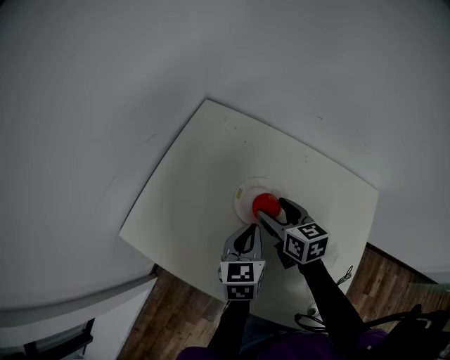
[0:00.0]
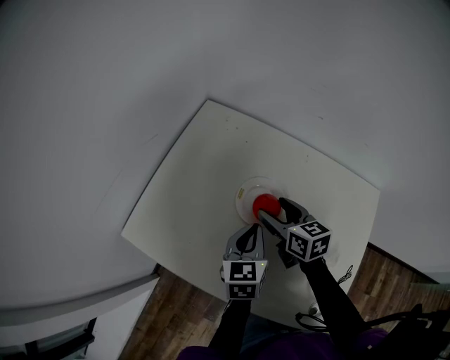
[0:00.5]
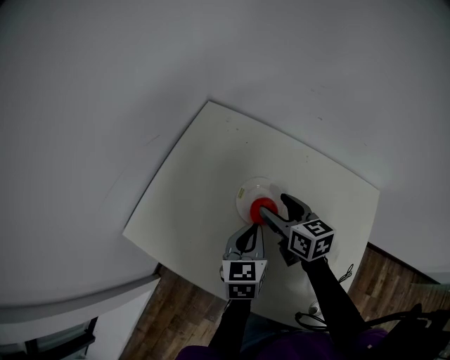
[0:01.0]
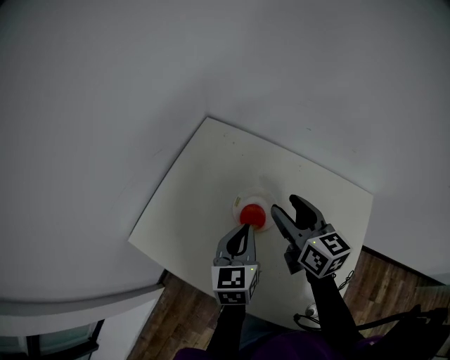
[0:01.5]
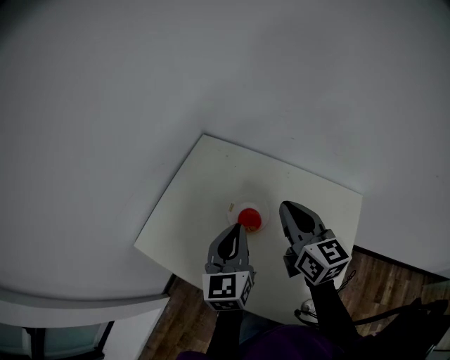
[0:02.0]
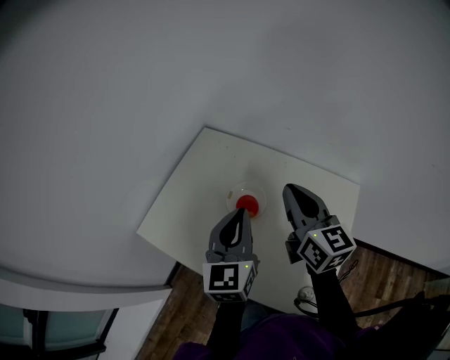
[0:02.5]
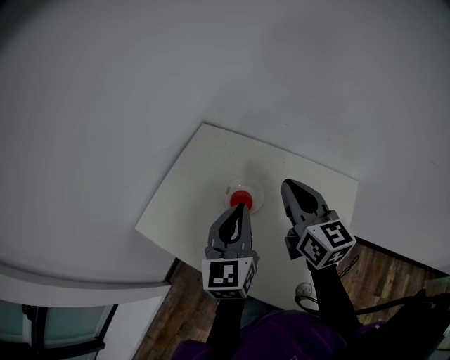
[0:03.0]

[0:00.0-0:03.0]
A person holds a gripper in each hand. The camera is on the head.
0:00.0 to 0:01.5: The left gripper shifts approximately 10 cm upward. The right gripper goes roughly 15 cm upward.
0:01.5 to 0:03.0: The two grippers go approximately 15 cm upward and backward. The right gripper closes.

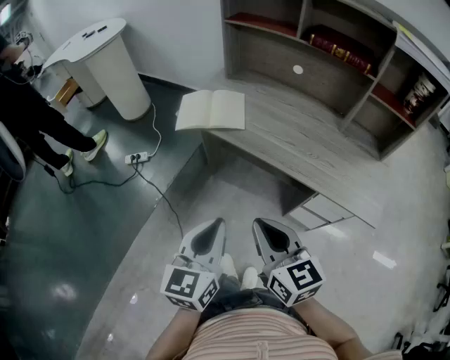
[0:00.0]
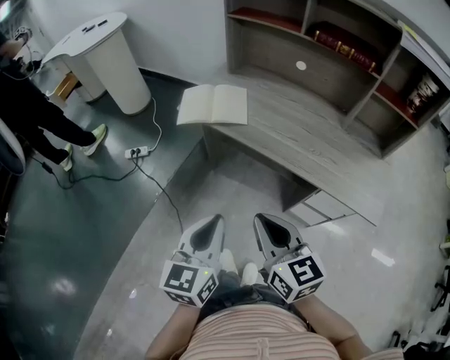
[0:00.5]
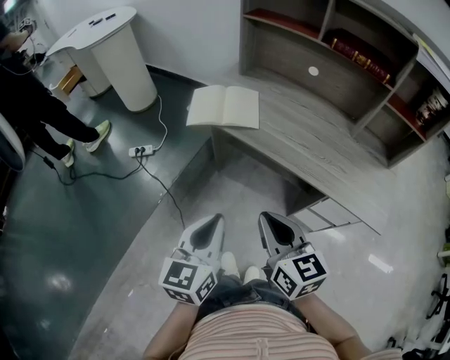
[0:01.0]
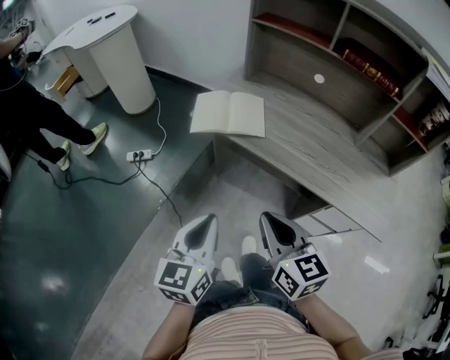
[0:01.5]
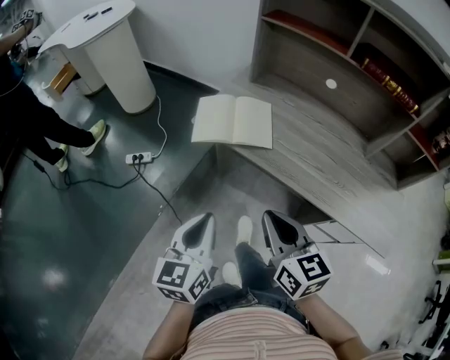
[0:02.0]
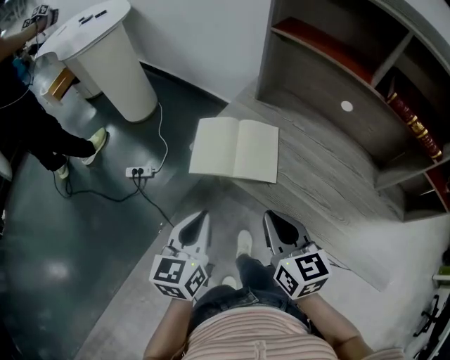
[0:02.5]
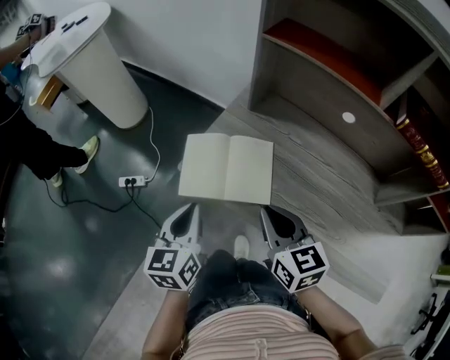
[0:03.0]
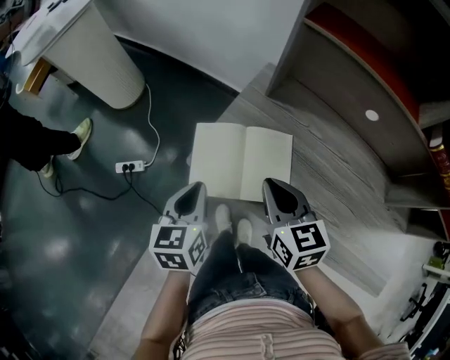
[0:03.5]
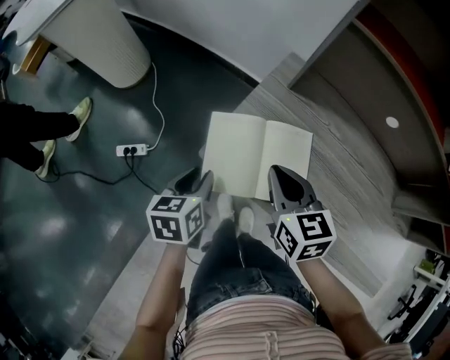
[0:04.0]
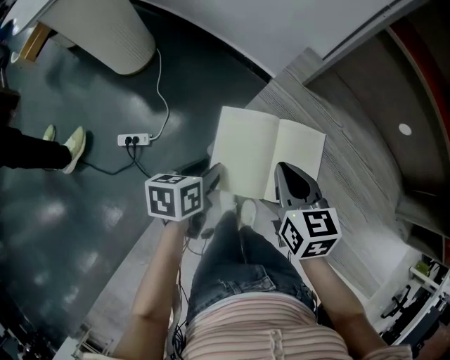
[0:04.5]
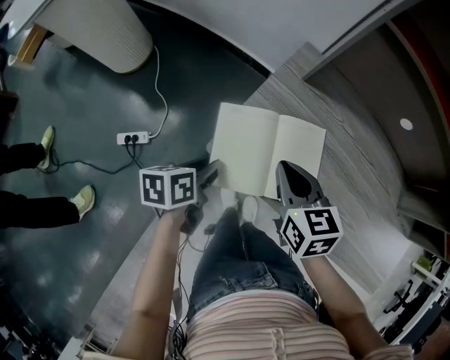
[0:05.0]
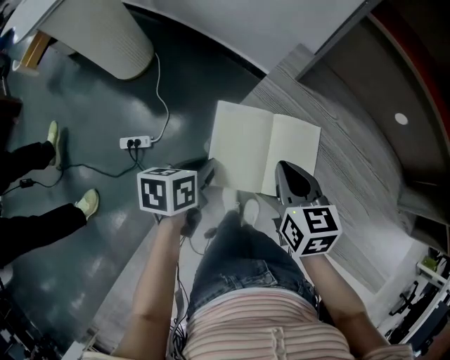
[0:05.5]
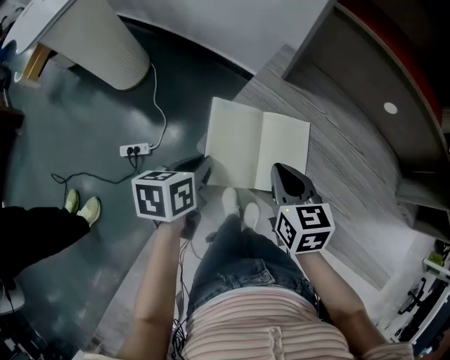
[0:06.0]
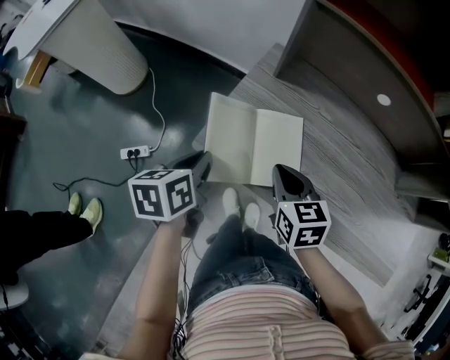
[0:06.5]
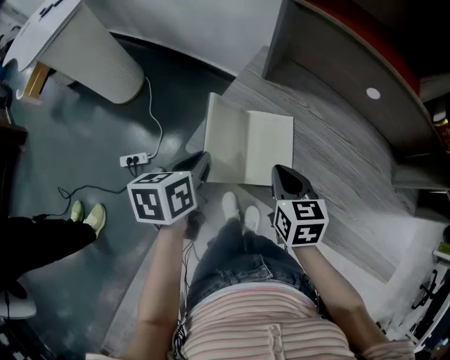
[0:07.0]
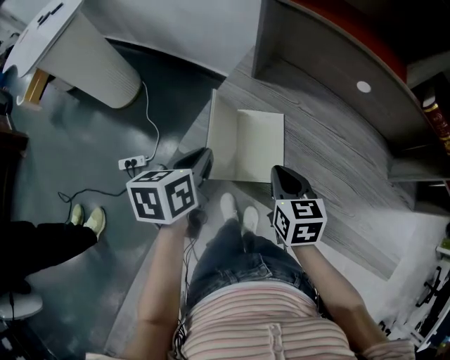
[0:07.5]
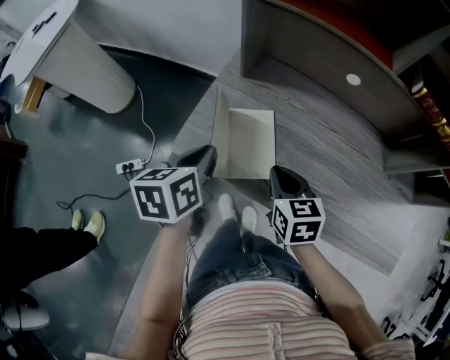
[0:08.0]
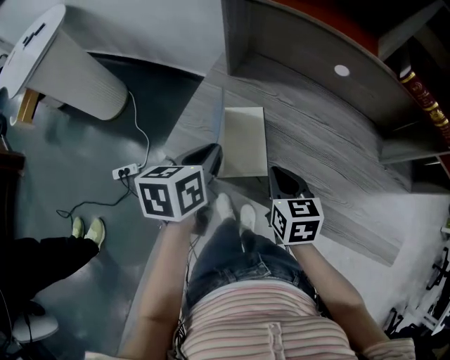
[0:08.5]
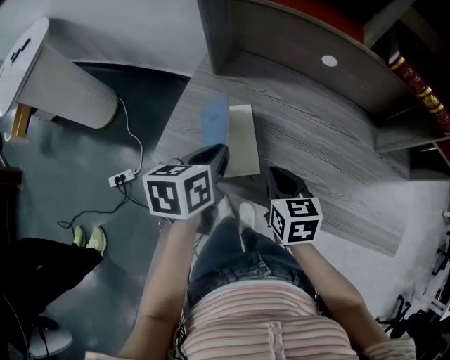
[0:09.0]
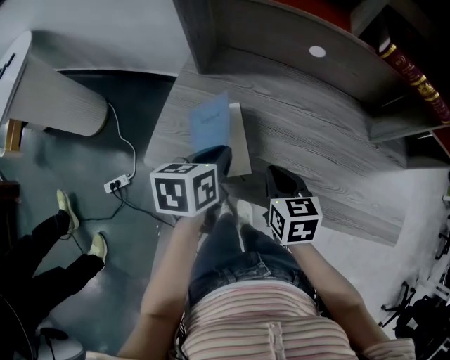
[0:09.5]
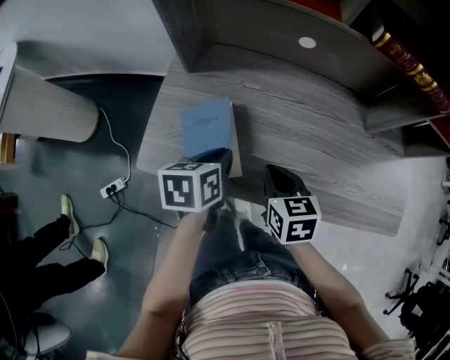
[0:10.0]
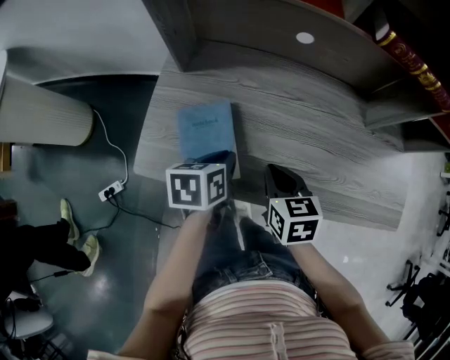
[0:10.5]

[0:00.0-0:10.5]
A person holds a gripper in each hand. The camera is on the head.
0:00.0 to 0:02.0: The right gripper heads forward, covering about 15 cm; the left gripper shifts approximately 15 cm forward and to the left.
0:02.0 to 0:04.0: The right gripper heads forward, covering approximately 35 cm. The left gripper shifts roughly 35 cm forward and downward, changes its angle by roughly 30 degrees, and opens up.
0:04.0 to 0:06.5: The right gripper ends up about 5 cm from where it was. Meanwhile the left gripper is displaced upward by roughly 5 cm.
0:06.5 to 0:08.5: The two grippers go about 10 cm to the right.
0:08.5 to 0:10.5: The right gripper heads to the right, covering roughly 5 cm. The left gripper goes roughly 15 cm to the right and downward, and turns by roughly 20 degrees.

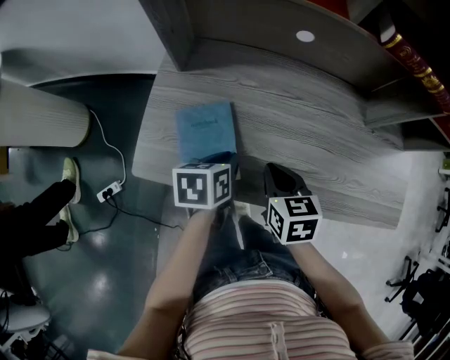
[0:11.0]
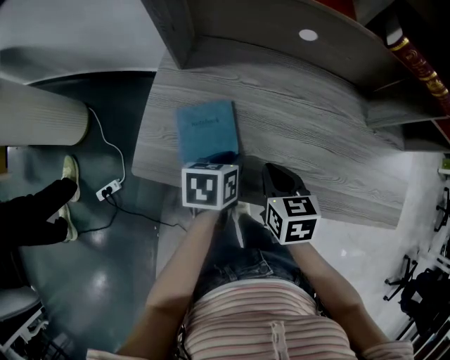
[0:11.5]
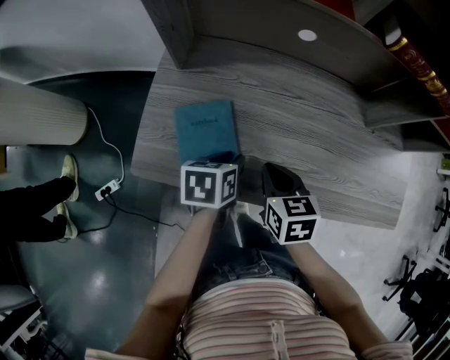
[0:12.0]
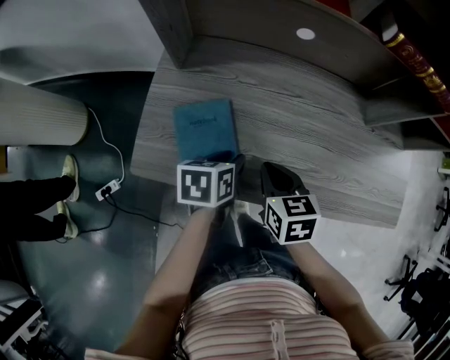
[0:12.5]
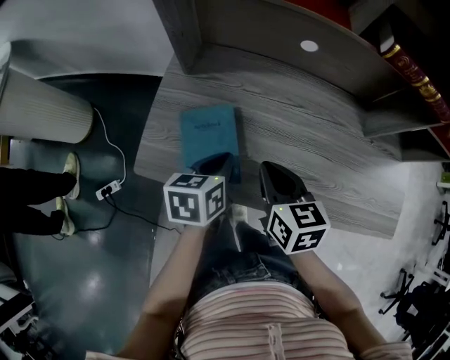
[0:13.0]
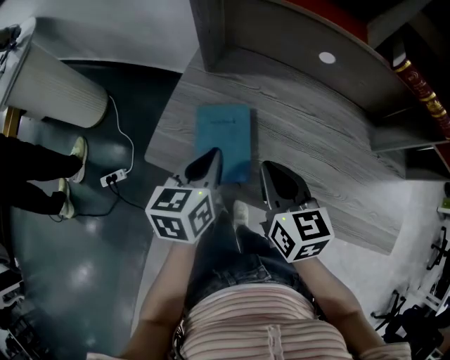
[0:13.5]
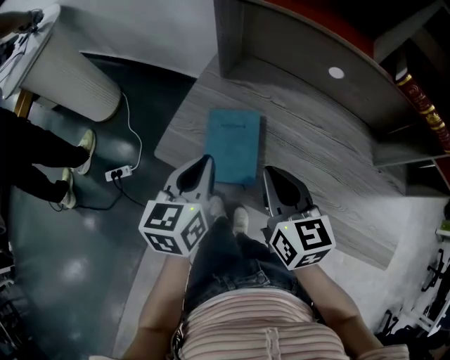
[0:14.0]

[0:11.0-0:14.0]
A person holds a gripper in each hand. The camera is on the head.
0:11.0 to 0:12.5: The grippers stay close to where they were, moving slightly.
0:12.5 to 0:14.0: The grippers both shift upward by roughly 10 cm. The right gripper changes its angle by some 30 degrees. The left gripper turns by some 40 degrees, and closes.

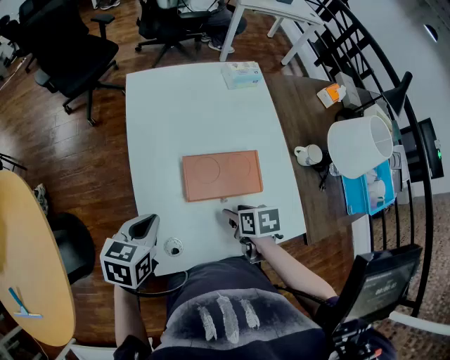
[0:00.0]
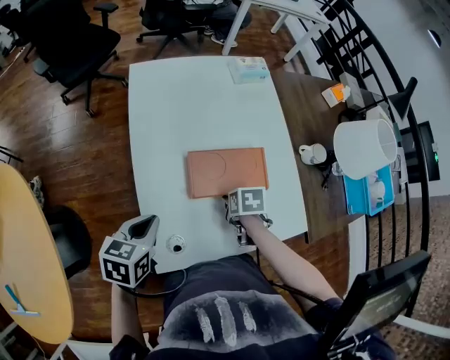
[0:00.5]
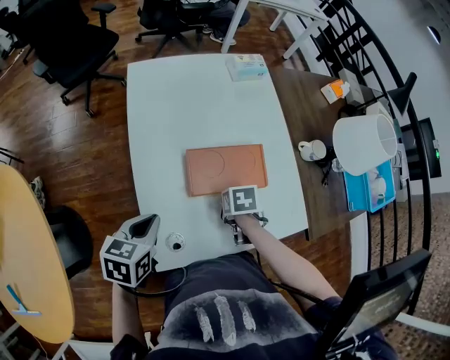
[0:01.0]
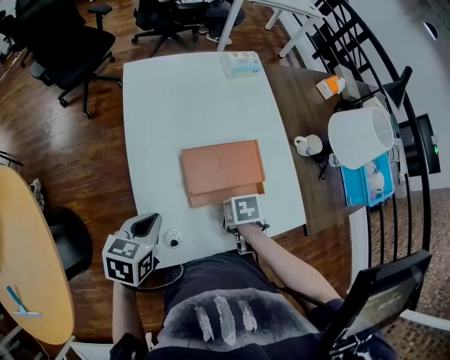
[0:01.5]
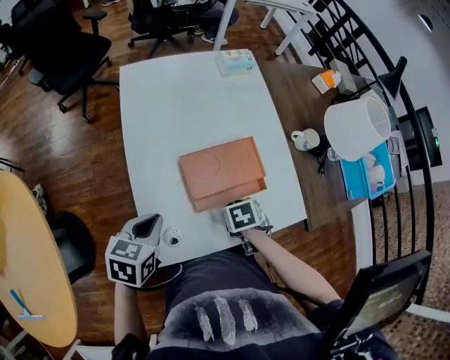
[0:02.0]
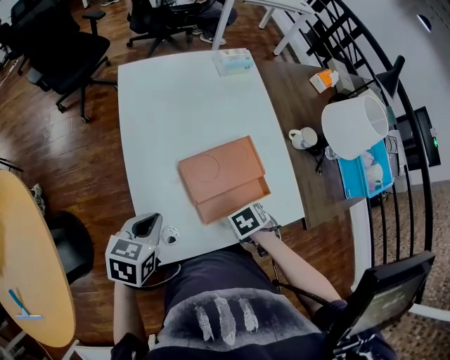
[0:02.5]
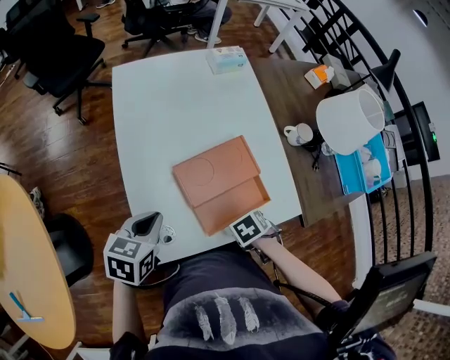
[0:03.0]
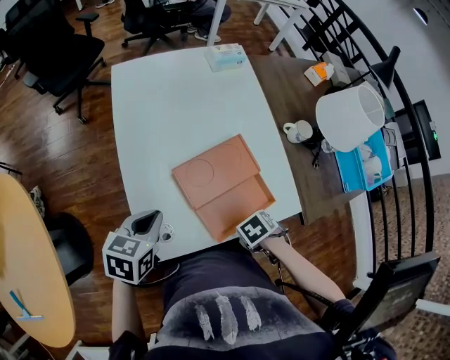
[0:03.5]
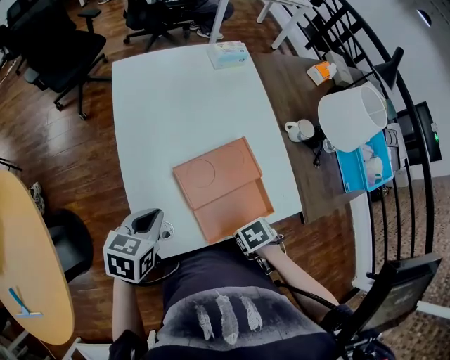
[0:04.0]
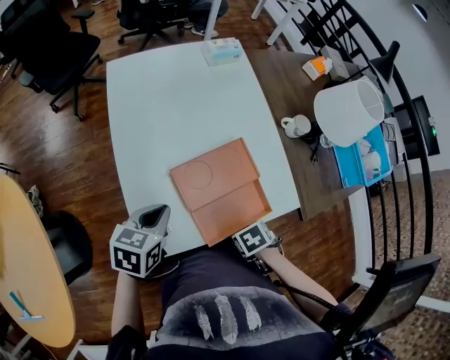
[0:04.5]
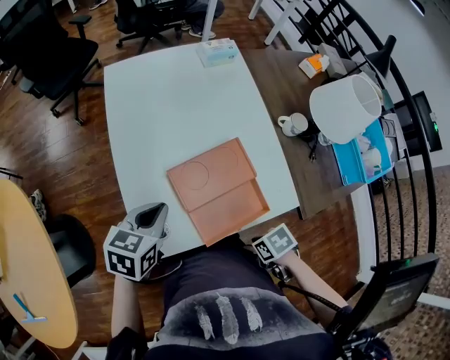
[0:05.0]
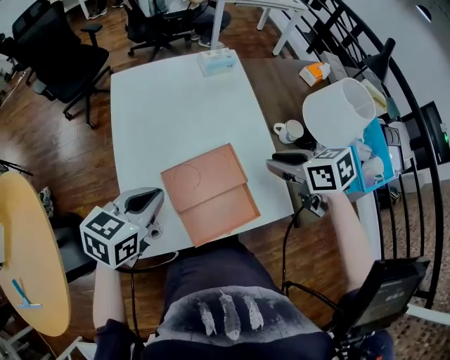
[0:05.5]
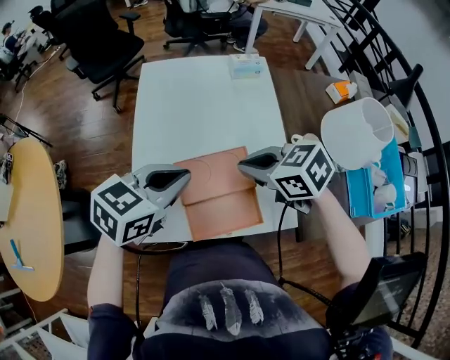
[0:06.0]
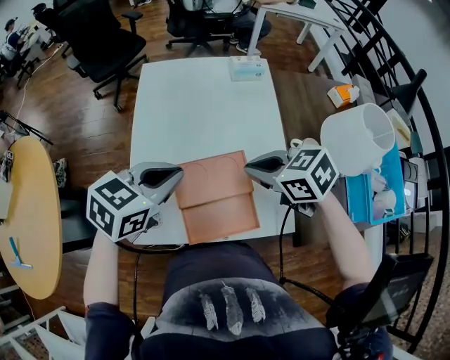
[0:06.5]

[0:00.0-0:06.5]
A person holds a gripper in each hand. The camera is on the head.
0:02.0 to 0:04.5: The left gripper moves about 5 cm.
0:04.5 to 0:06.5: The left gripper goes approximately 15 cm upward.

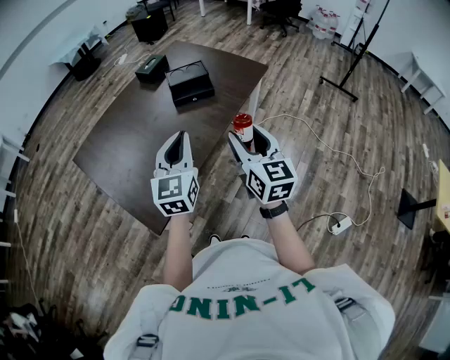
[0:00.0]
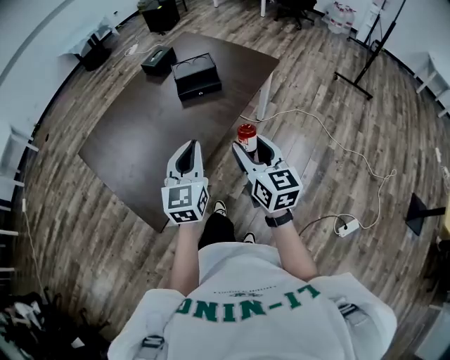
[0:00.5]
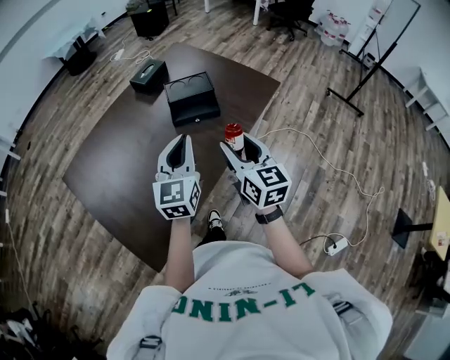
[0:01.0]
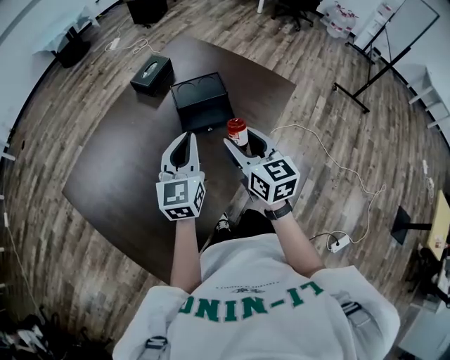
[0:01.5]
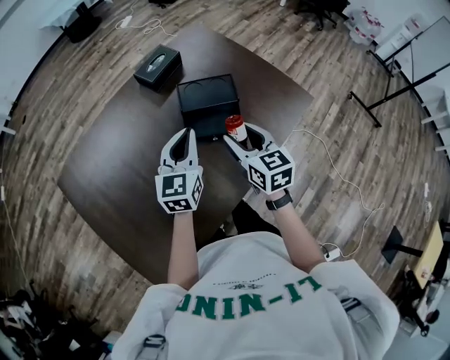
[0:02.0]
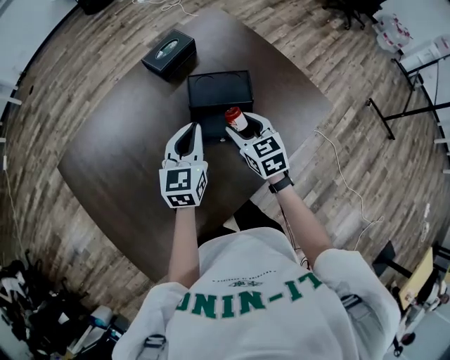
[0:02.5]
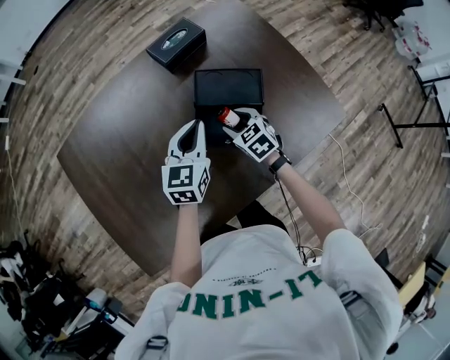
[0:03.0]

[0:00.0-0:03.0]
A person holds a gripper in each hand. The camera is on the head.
0:00.0 to 0:01.5: The grippers both shift forward by some 35 cm.
0:01.5 to 0:03.0: The left gripper heads forward and downward, covering some 25 cm, and rotates some 20 degrees. The right gripper goes some 35 cm downward and forward, and points its fingers roughly 30 degrees further downward.
